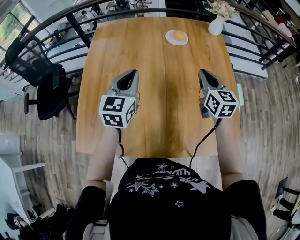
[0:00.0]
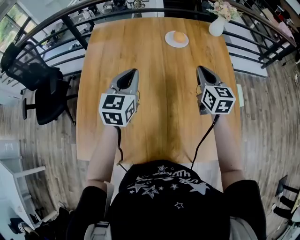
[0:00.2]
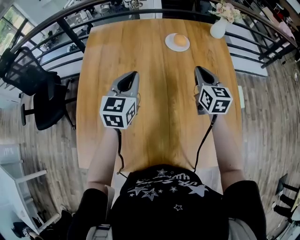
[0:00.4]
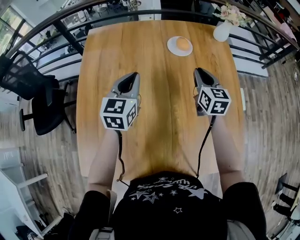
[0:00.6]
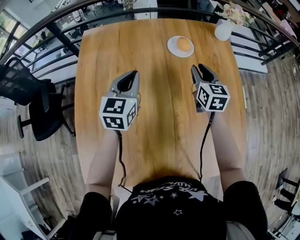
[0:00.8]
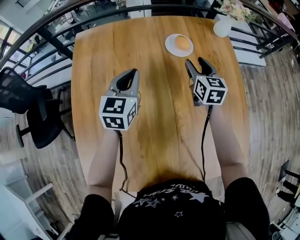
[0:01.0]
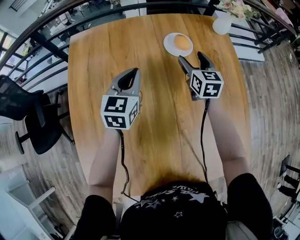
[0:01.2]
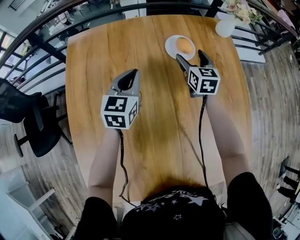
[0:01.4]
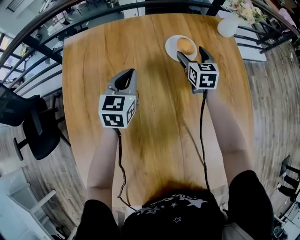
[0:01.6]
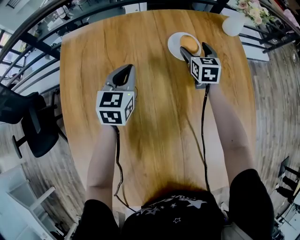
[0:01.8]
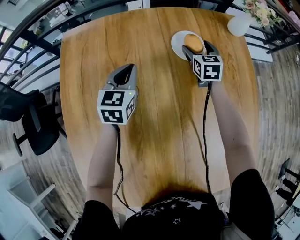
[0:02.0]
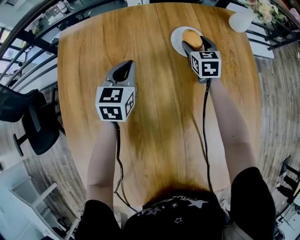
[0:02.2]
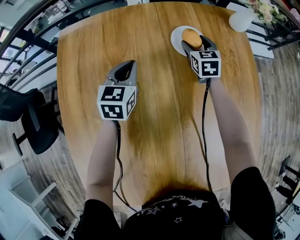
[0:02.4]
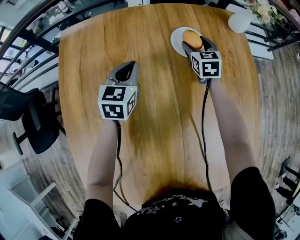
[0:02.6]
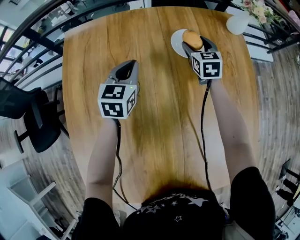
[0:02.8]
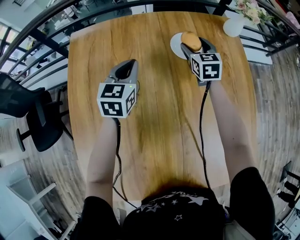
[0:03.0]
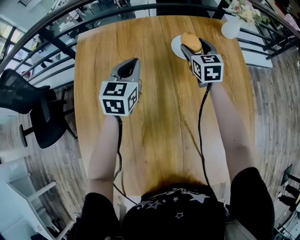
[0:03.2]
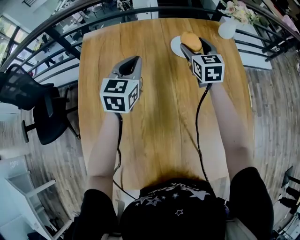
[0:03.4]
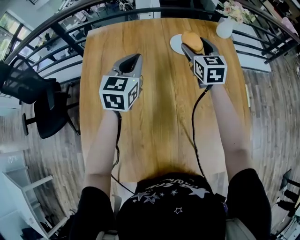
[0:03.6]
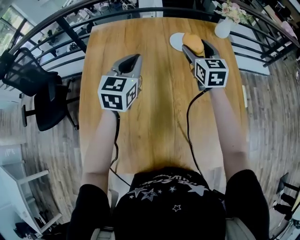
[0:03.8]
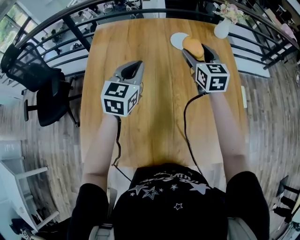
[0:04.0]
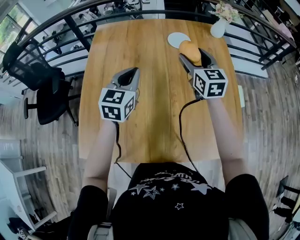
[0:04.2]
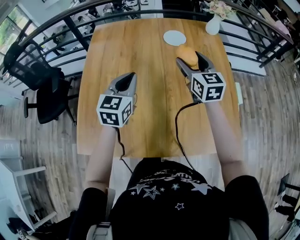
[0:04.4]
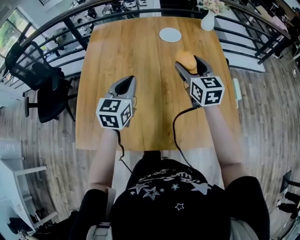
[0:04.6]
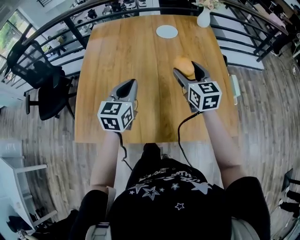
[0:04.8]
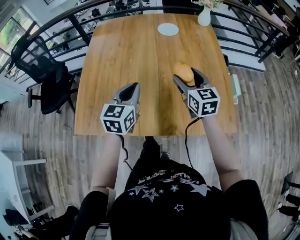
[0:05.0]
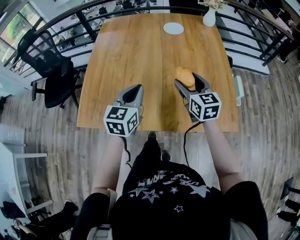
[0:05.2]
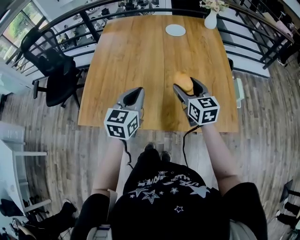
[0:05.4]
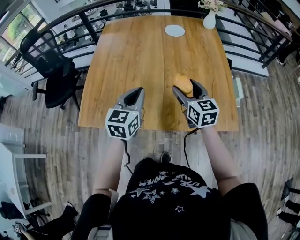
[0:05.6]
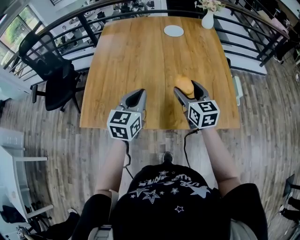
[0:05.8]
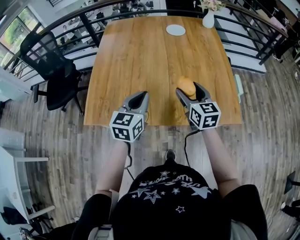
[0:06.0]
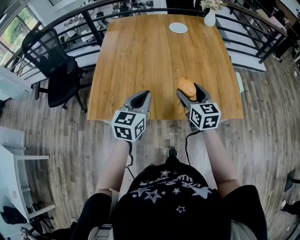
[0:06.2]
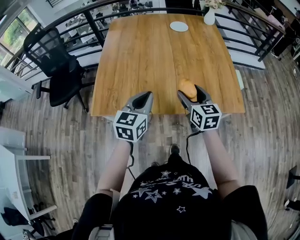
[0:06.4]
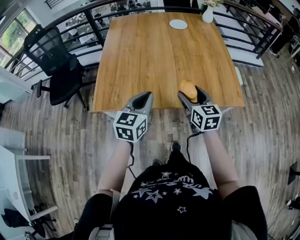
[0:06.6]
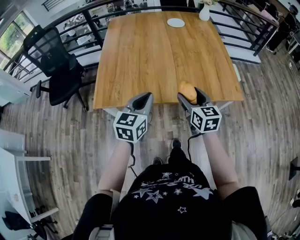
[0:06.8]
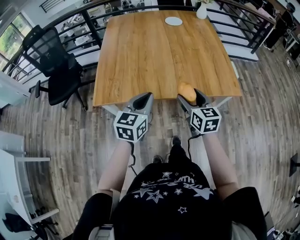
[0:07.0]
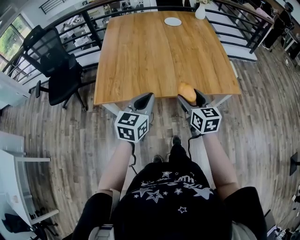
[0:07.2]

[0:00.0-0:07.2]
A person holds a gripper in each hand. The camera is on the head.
0:00.0 to 0:01.4: Both grippers move forward and downward, approximately 35 cm. The right gripper opens.
0:01.4 to 0:02.8: The right gripper moves forward and downward, roughly 10 cm, while the left gripper is displaced downward and forward by about 10 cm.
0:02.8 to 0:04.4: The grippers both shift backward and upward by about 40 cm. The right gripper changes its angle by about 20 degrees.
0:04.4 to 0:05.8: The two grippers go approximately 30 cm backward.
0:05.8 to 0:07.2: Both grippers move backward, some 25 cm.

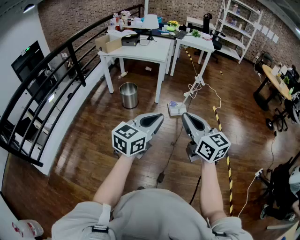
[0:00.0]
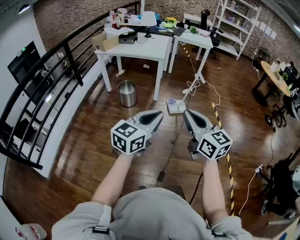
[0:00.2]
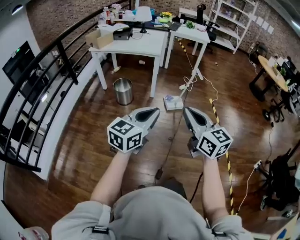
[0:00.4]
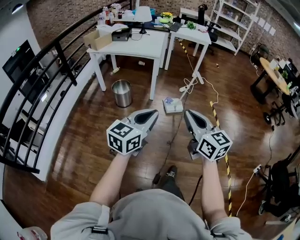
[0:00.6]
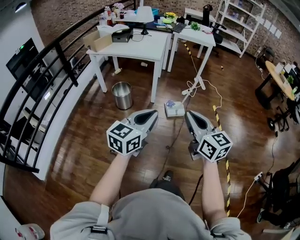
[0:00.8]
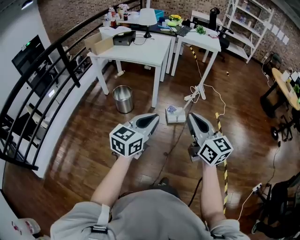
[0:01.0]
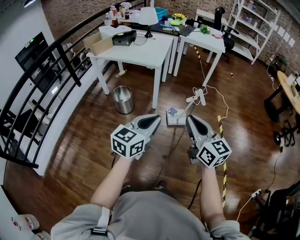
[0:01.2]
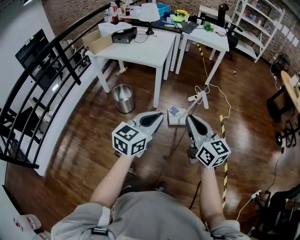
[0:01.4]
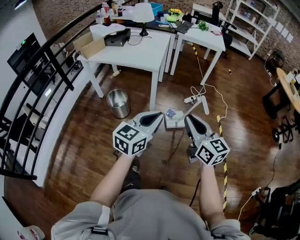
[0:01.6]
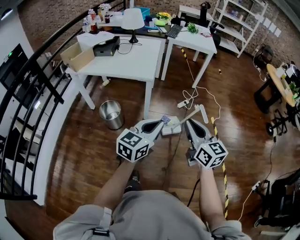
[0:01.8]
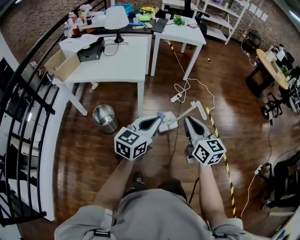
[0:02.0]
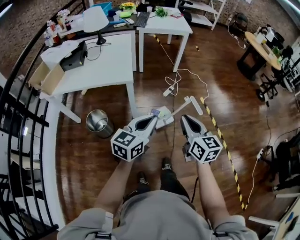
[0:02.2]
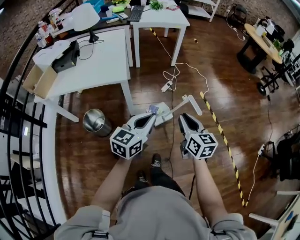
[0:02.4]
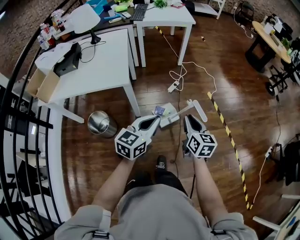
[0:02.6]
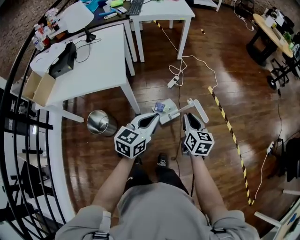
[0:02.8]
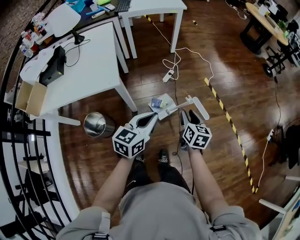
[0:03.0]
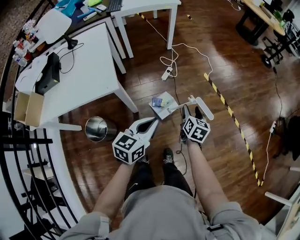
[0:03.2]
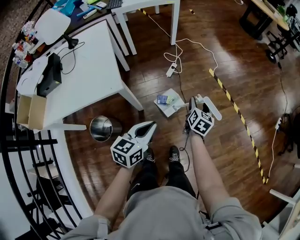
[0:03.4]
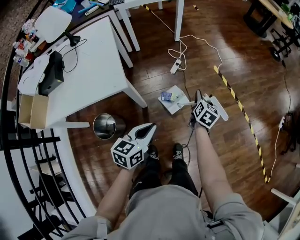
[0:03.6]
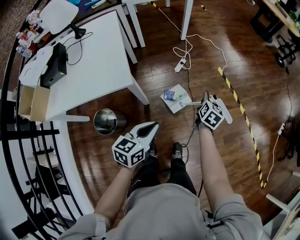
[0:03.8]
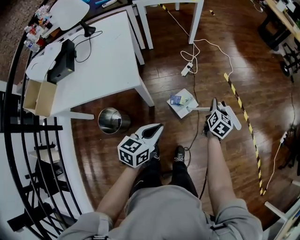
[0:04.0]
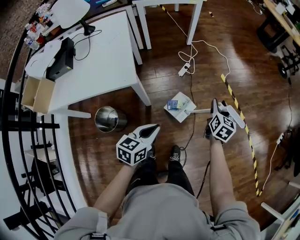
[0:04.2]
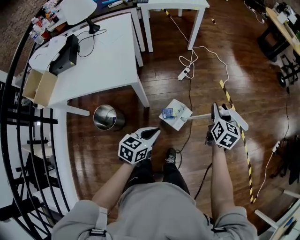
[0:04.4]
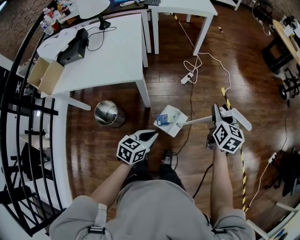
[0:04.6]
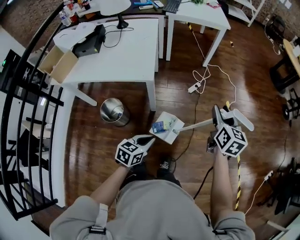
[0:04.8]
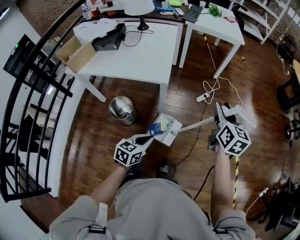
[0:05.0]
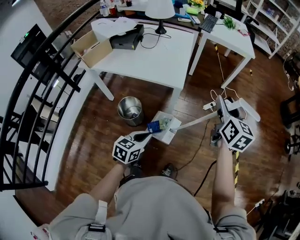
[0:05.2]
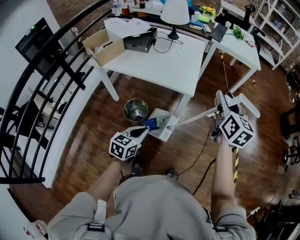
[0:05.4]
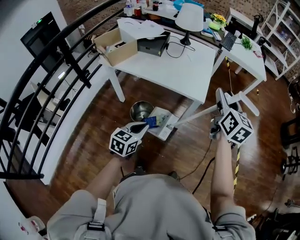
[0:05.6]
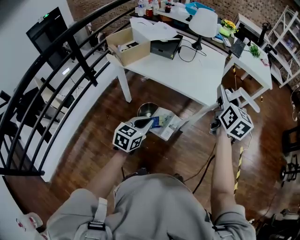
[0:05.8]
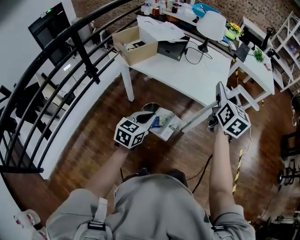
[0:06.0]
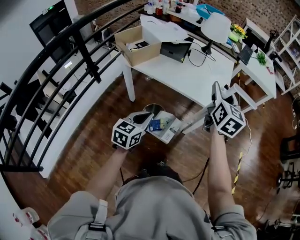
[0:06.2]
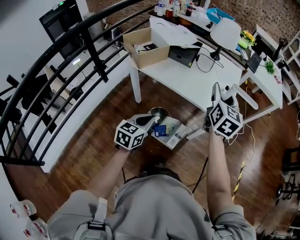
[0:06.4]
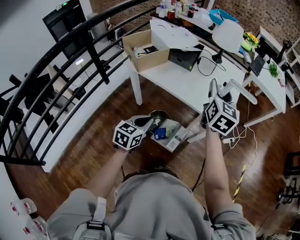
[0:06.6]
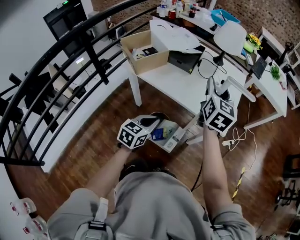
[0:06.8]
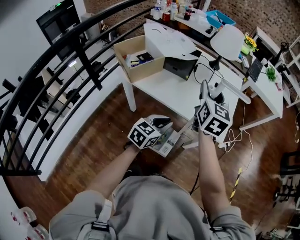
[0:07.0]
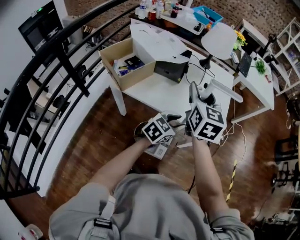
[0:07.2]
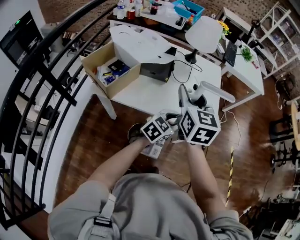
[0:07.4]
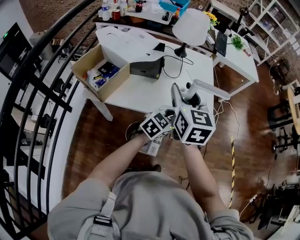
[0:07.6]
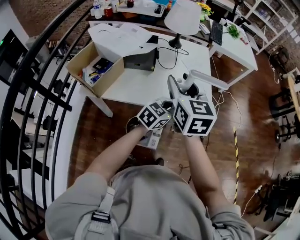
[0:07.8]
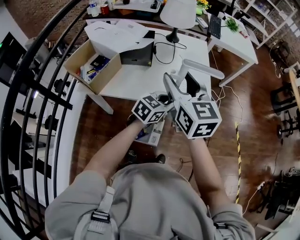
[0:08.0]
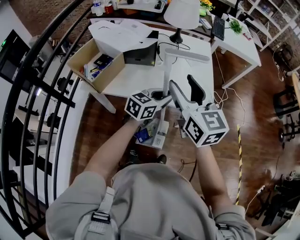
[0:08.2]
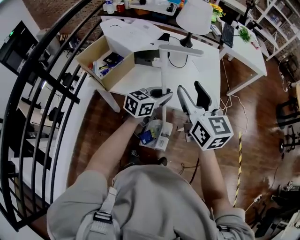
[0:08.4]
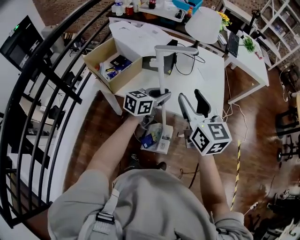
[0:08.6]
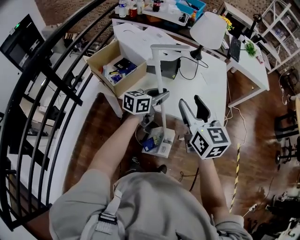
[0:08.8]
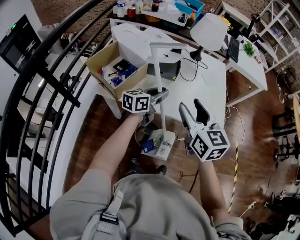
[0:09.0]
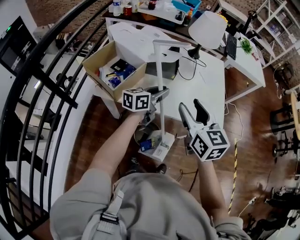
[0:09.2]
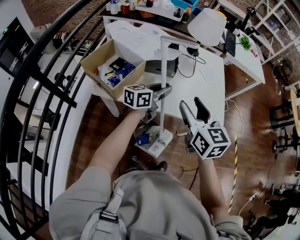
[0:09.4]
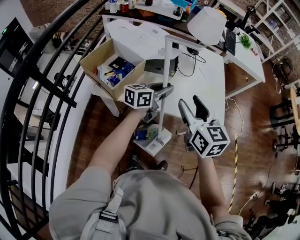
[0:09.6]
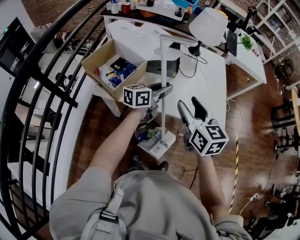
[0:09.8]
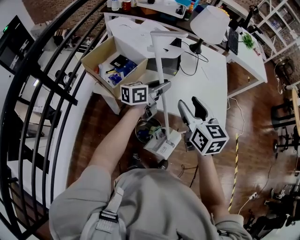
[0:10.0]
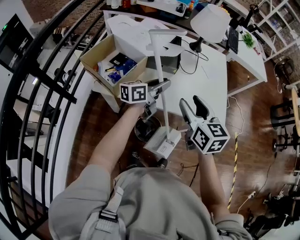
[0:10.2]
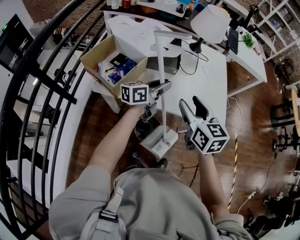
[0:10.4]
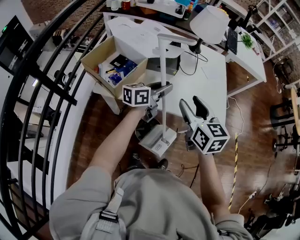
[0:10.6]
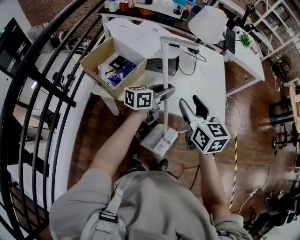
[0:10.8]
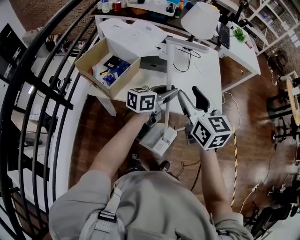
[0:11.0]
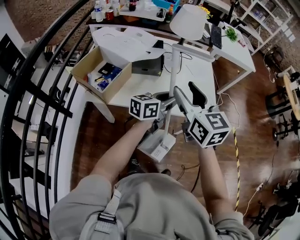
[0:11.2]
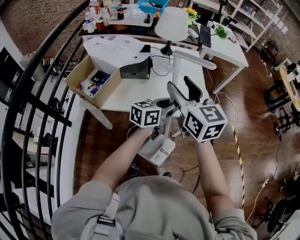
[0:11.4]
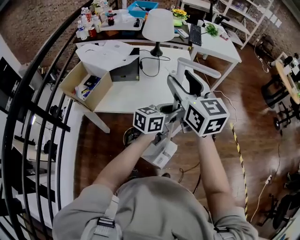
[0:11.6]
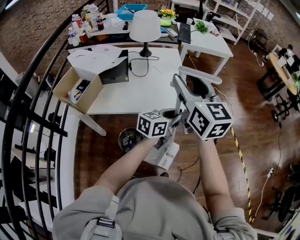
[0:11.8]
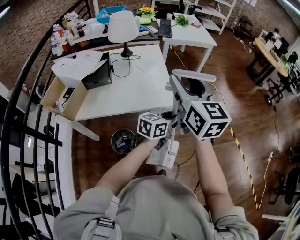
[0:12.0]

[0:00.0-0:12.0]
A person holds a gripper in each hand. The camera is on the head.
0:00.0 to 0:01.6: Both grippers are carried forward, about 40 cm.
0:01.6 to 0:03.0: The left gripper ends up approximately 30 cm from where it was, and turns by approximately 30 degrees. The right gripper changes place by roughly 40 cm, swivels some 50 degrees, and opens its fingers.
0:03.0 to 0:04.4: The left gripper is displaced downward and backward by some 10 cm. The right gripper shifts roughly 10 cm forward.
0:04.4 to 0:06.0: The pair of grippers is taken some 50 cm. The right gripper rotates approximately 40 degrees; the left gripper changes its angle by approximately 40 degrees.
0:06.0 to 0:07.6: The right gripper goes about 25 cm to the left and forward. Meanwhile the left gripper is displaced forward by approximately 25 cm, and turns by approximately 40 degrees.
0:07.6 to 0:09.0: The left gripper moves to the left, roughly 20 cm, and changes its angle by approximately 40 degrees. The right gripper heads backward, covering approximately 5 cm.
0:09.0 to 0:10.4: The grippers make only small movements.
0:10.4 to 0:12.0: The left gripper goes about 40 cm to the right, and turns by roughly 30 degrees, while the right gripper travels to the right and upward by some 35 cm, and turns by approximately 30 degrees.

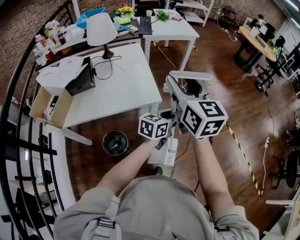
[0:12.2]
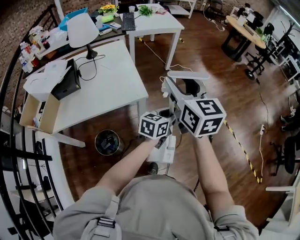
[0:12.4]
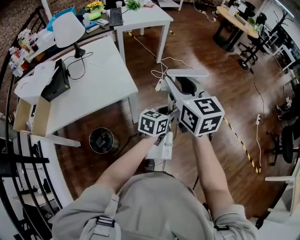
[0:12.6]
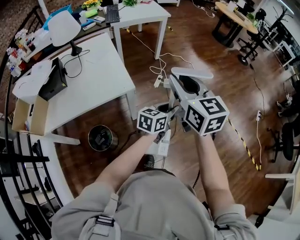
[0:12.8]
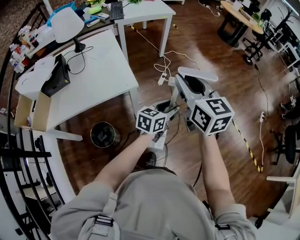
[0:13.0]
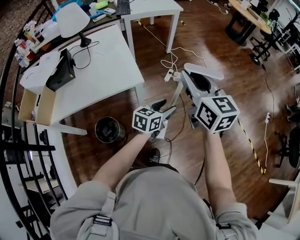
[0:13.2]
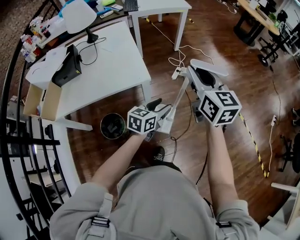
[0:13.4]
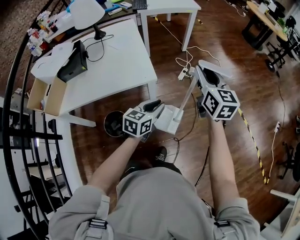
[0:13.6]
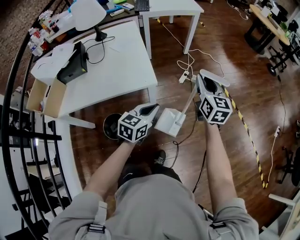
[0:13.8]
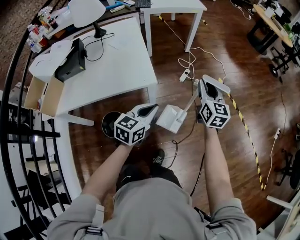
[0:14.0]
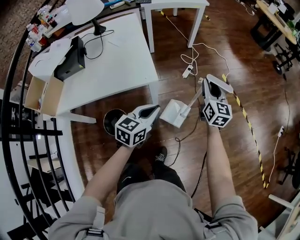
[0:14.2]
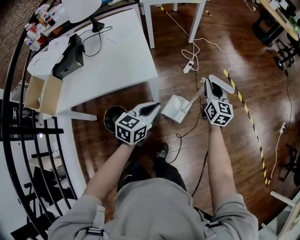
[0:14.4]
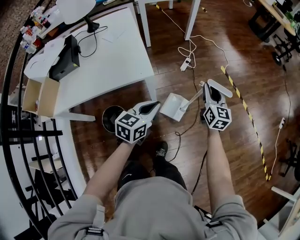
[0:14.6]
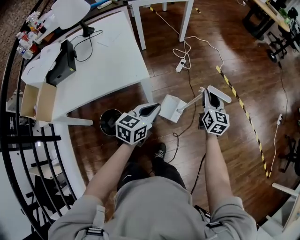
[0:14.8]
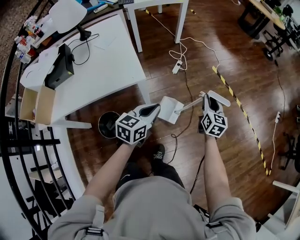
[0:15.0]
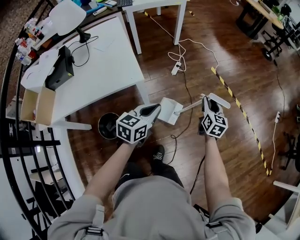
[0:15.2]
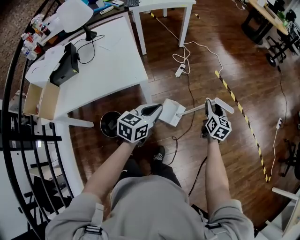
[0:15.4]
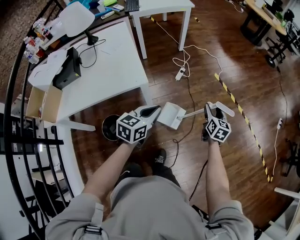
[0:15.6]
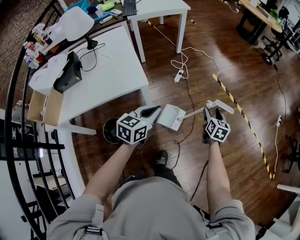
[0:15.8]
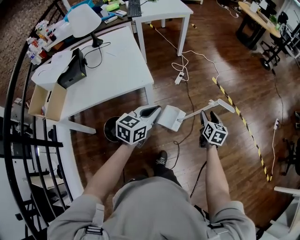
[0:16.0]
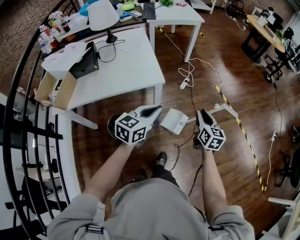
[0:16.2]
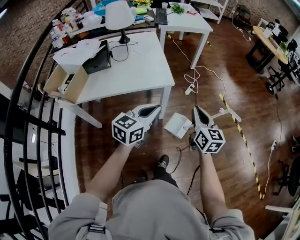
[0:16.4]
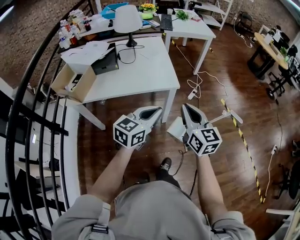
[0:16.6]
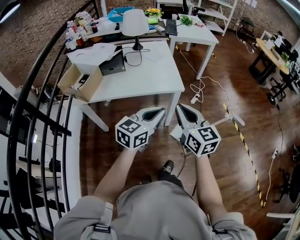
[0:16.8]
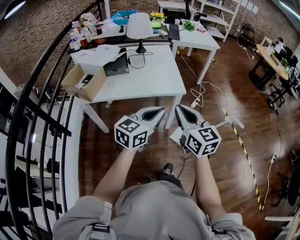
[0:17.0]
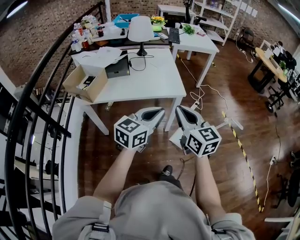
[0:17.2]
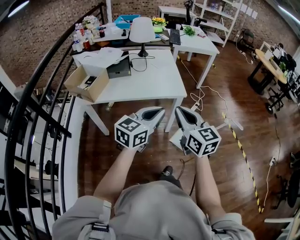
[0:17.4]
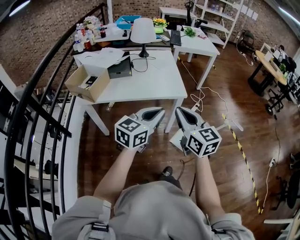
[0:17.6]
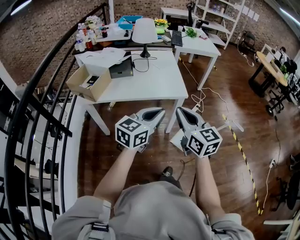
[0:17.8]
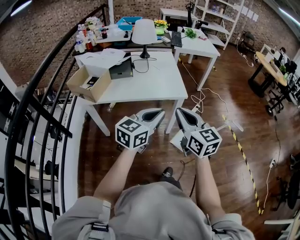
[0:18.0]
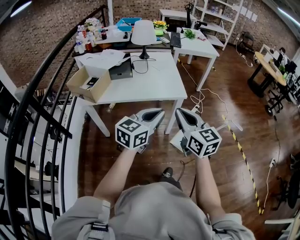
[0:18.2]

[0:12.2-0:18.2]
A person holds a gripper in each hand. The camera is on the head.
0:12.2 to 0:13.8: The right gripper is displaced downward, to the right and forward by some 30 cm, and closes up. Meanwhile the left gripper shifts approximately 5 cm downward, goes to the right and returns, some 15 cm each way, and closes up.
0:13.8 to 0:15.2: The left gripper goes roughly 5 cm to the right. Meanwhile the right gripper goes some 25 cm downward and to the right, and turns by some 20 degrees.
0:15.2 to 0:16.6: The right gripper moves to the left, backward and upward, roughly 40 cm, rotates about 40 degrees, and closes up; the left gripper goes about 25 cm backward, upward and to the left.
0:16.6 to 0:18.2: The left gripper shifts about 10 cm backward, upward and to the left. The right gripper heads to the left, backward and upward, covering approximately 15 cm.
